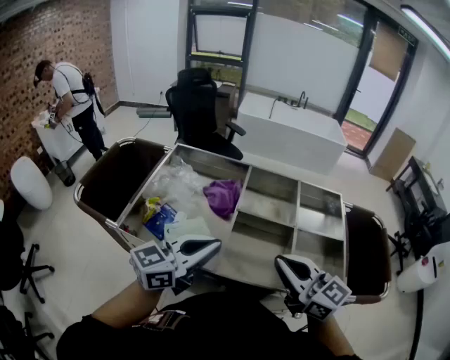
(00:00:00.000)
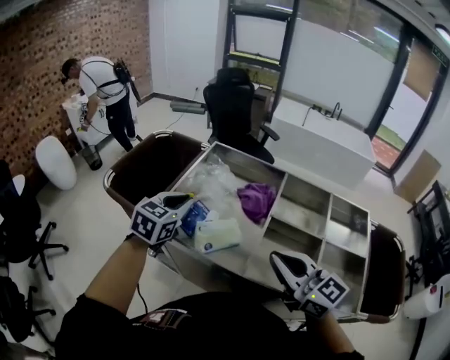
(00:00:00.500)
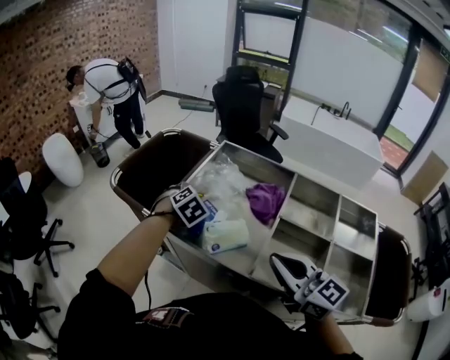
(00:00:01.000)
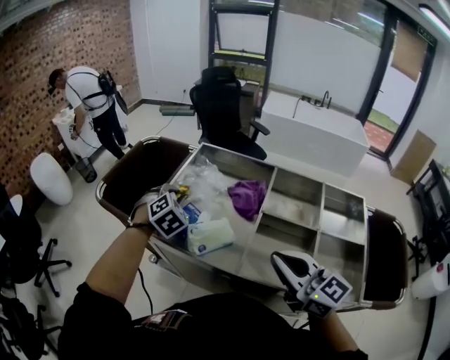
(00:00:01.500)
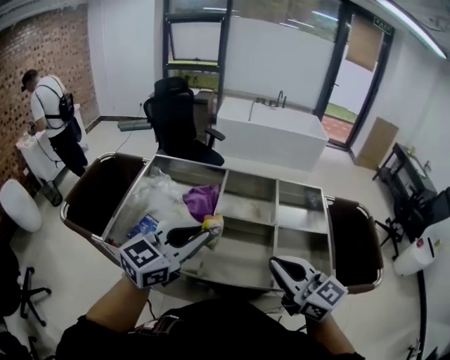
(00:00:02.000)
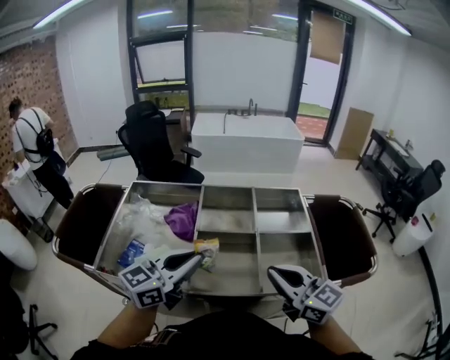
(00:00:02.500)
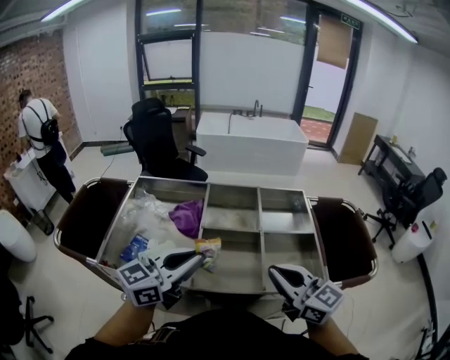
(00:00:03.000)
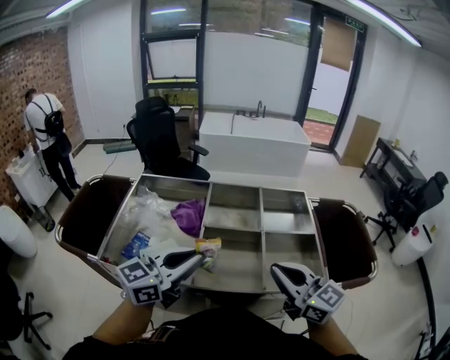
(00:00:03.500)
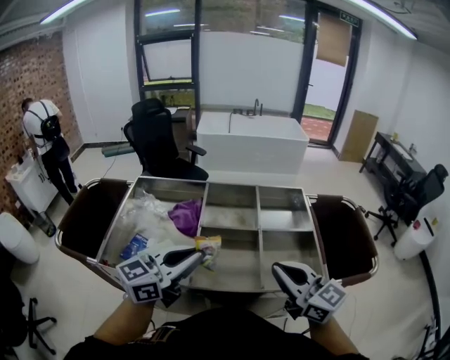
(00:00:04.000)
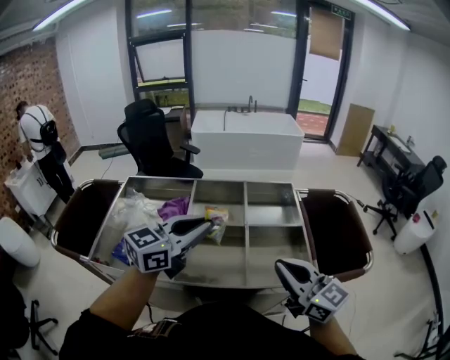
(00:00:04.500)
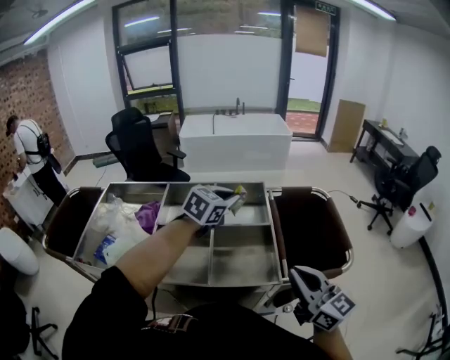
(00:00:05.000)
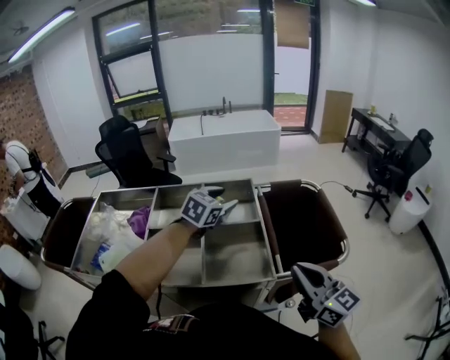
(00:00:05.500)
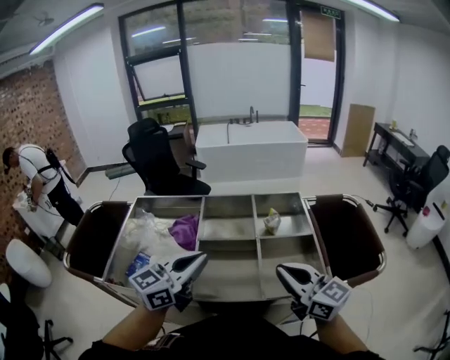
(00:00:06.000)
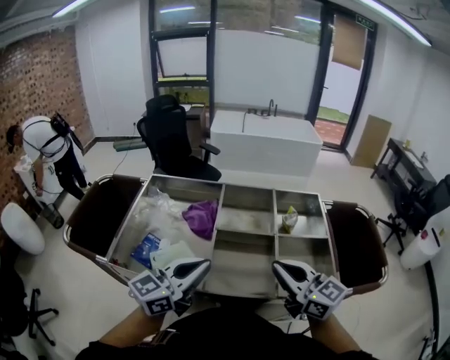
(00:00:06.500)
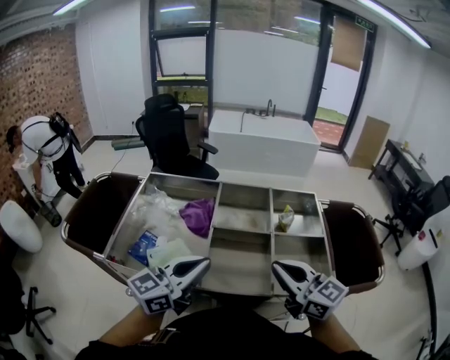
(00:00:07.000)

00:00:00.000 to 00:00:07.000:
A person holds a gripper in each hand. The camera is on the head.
00:00:00.000 to 00:00:02.000: The left gripper travels downward and back again, about 15 cm each way, and opens and closes again.
00:00:02.000 to 00:00:03.500: The grippers make only small movements.
00:00:03.500 to 00:00:05.000: The right gripper shifts some 20 cm to the right, while the left gripper shifts some 35 cm to the right and forward, and changes its angle by roughly 40 degrees.
00:00:05.000 to 00:00:07.000: The left gripper goes some 35 cm to the left and backward, tilts its fingers approximately 30 degrees upward, and opens, then closes again; the right gripper shifts approximately 20 cm to the left.

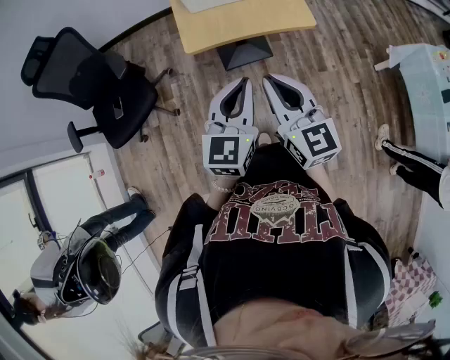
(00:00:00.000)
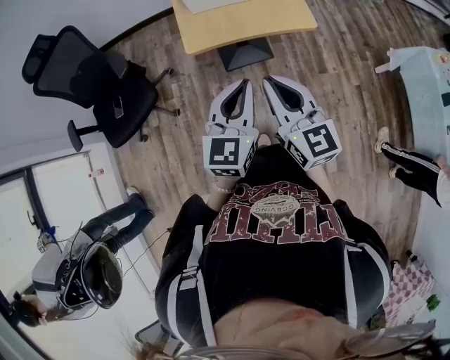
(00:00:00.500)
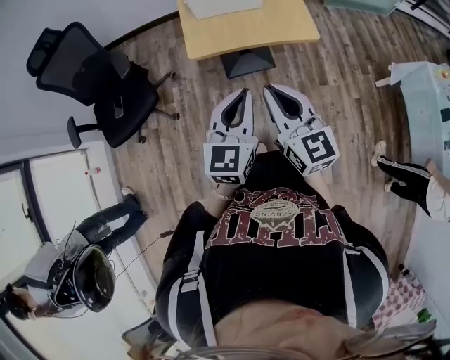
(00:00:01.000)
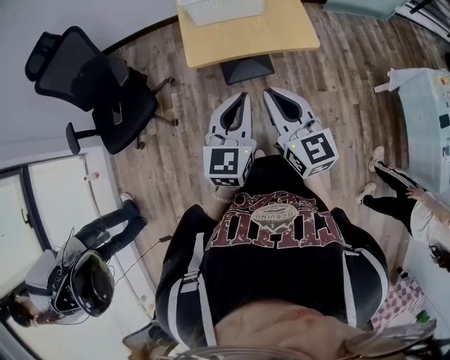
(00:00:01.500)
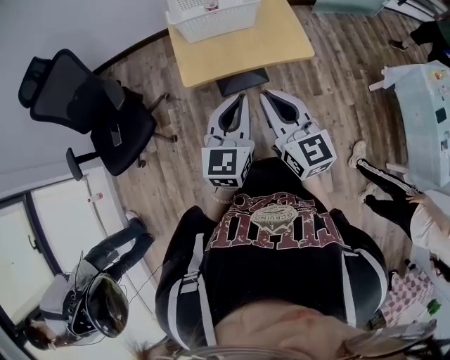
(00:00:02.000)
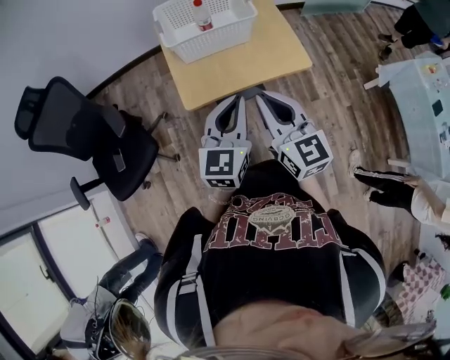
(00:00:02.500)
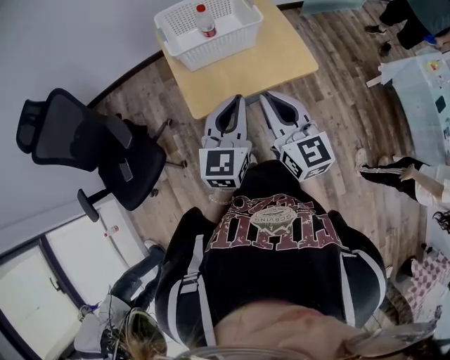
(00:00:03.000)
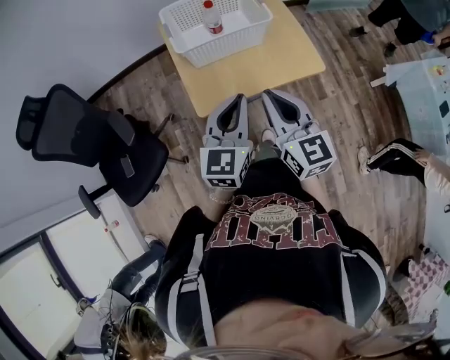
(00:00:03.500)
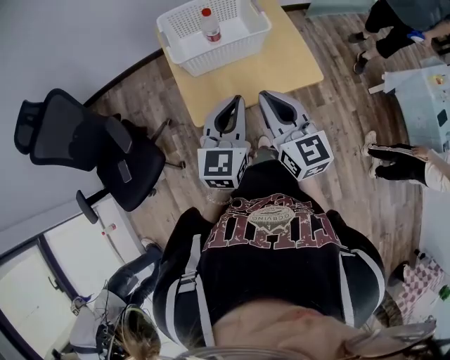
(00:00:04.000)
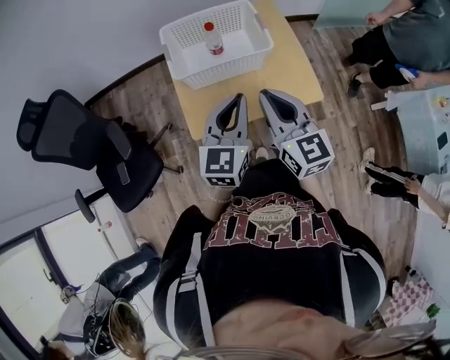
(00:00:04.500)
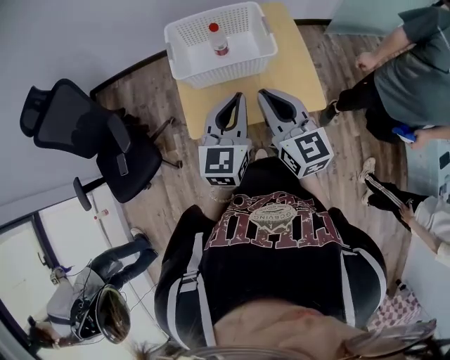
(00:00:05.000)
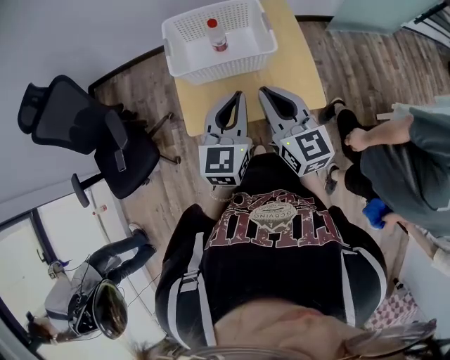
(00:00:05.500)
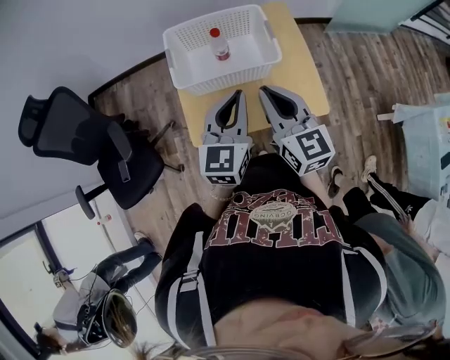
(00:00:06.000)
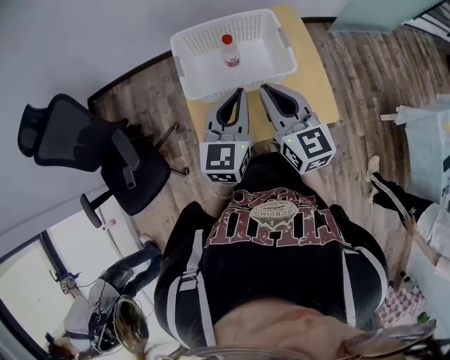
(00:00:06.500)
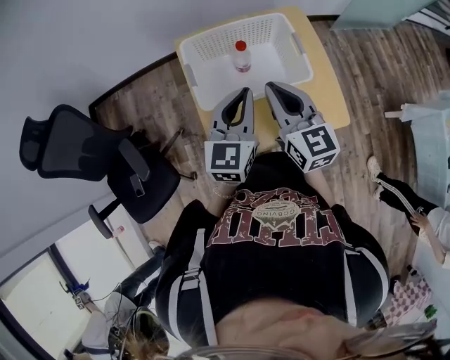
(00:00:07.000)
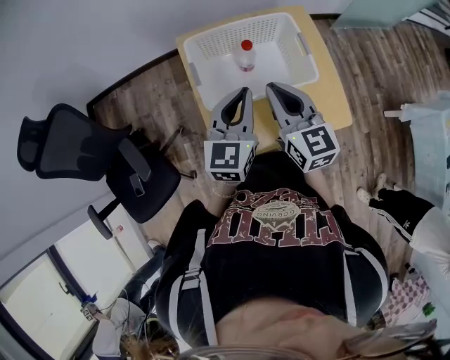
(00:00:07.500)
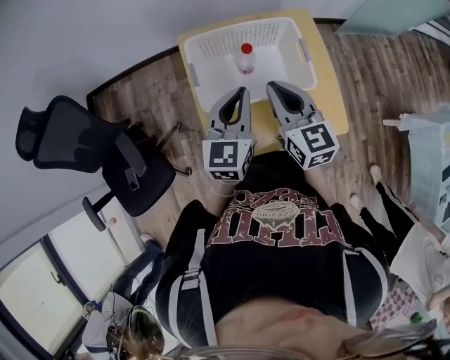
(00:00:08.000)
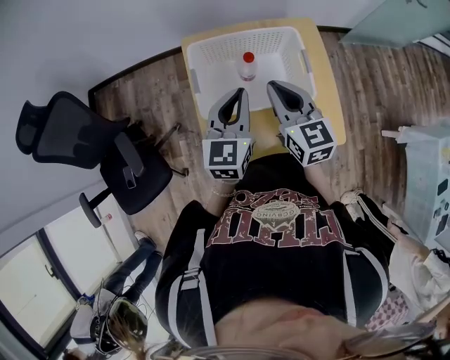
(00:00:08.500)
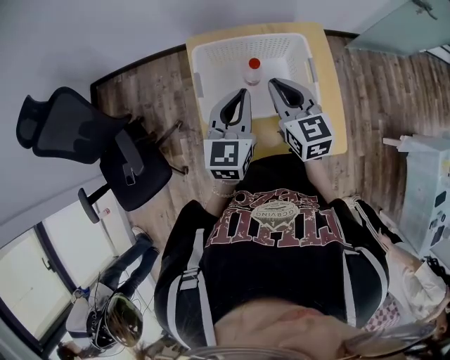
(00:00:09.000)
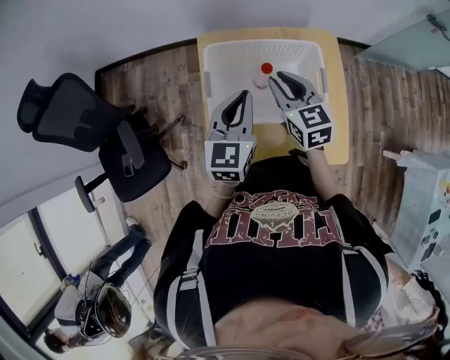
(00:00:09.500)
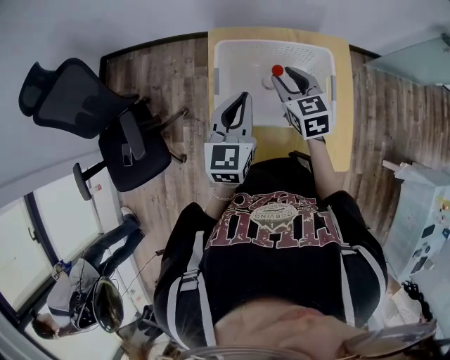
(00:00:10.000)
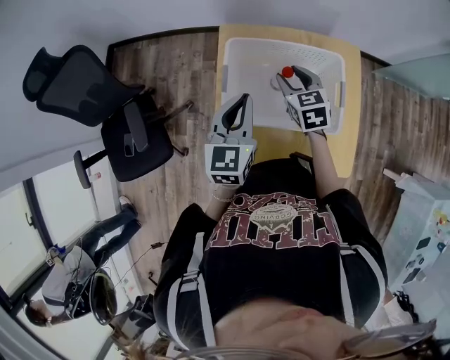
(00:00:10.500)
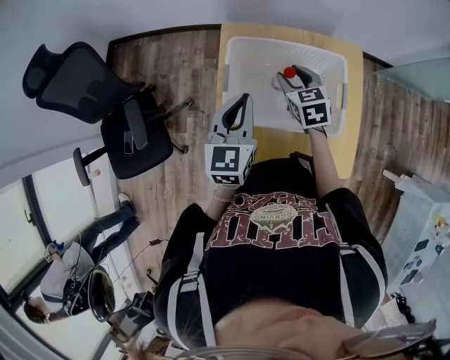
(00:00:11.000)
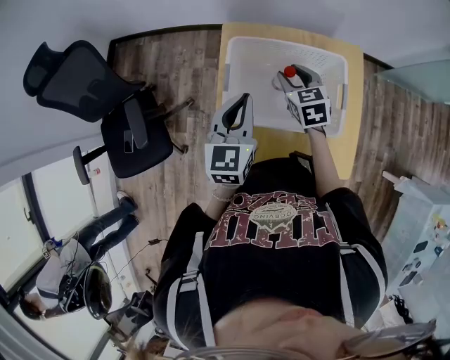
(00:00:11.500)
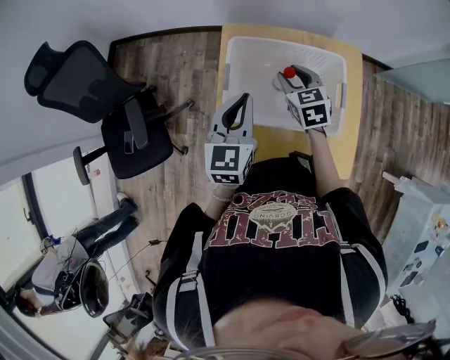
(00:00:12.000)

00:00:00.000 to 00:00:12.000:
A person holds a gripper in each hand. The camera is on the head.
00:00:00.000 to 00:00:02.000: Both grippers move forward, some 10 cm.
00:00:02.000 to 00:00:04.000: The two grippers go roughly 15 cm forward.
00:00:04.000 to 00:00:06.000: The grippers both shift forward by some 15 cm.
00:00:06.000 to 00:00:08.000: The grippers both shift forward and to the left by roughly 15 cm.
00:00:08.000 to 00:00:10.000: The left gripper shifts about 5 cm forward. Meanwhile the right gripper goes roughly 15 cm forward and downward, rotates approximately 20 degrees, and opens its fingers.
00:00:10.000 to 00:00:12.000: The grippers make only small movements.

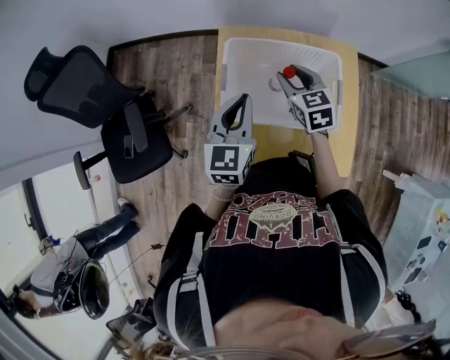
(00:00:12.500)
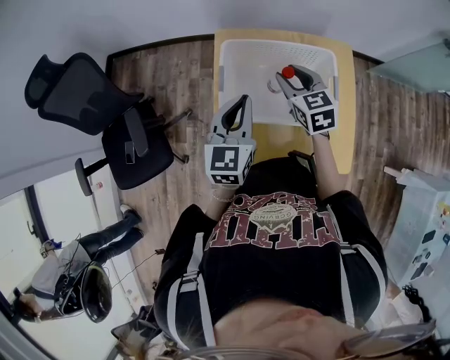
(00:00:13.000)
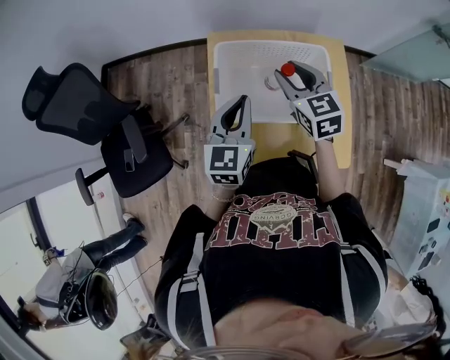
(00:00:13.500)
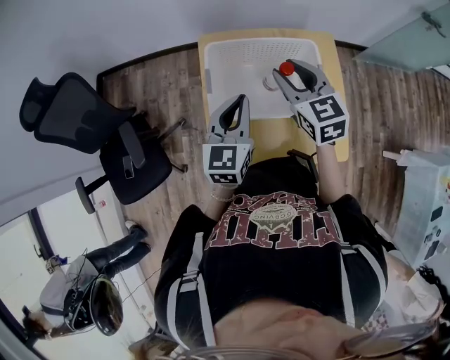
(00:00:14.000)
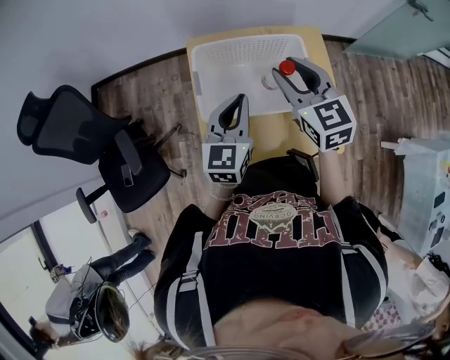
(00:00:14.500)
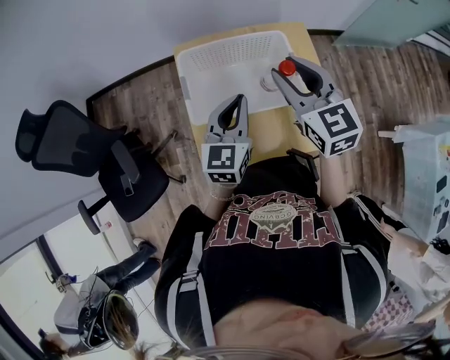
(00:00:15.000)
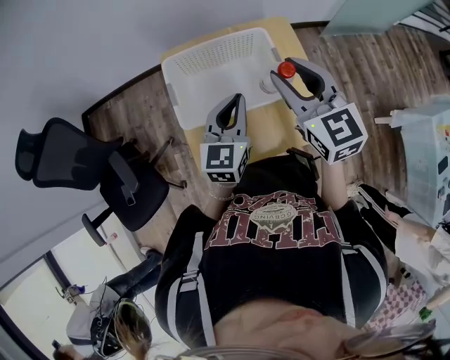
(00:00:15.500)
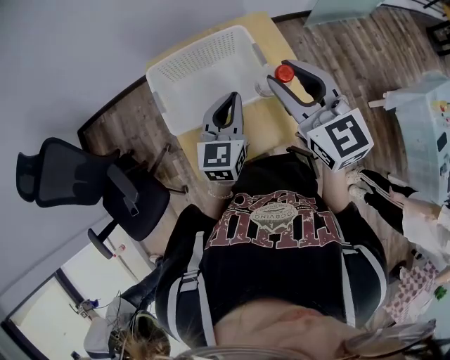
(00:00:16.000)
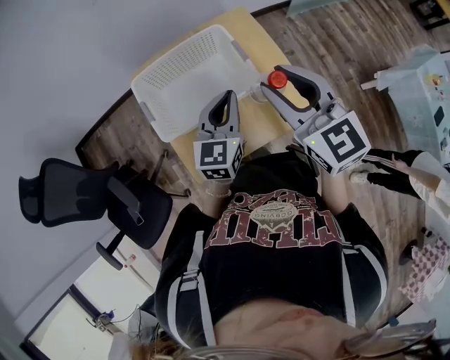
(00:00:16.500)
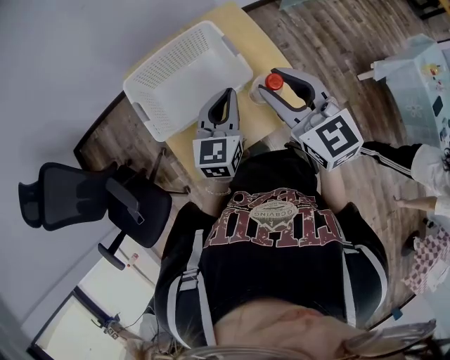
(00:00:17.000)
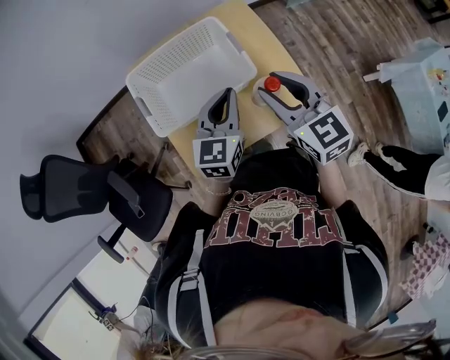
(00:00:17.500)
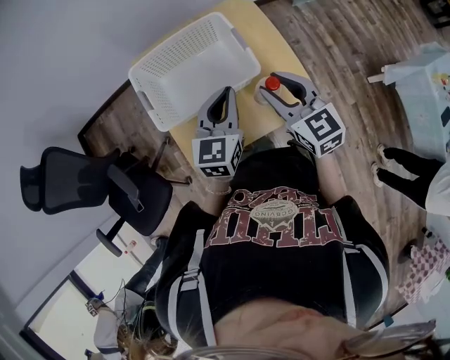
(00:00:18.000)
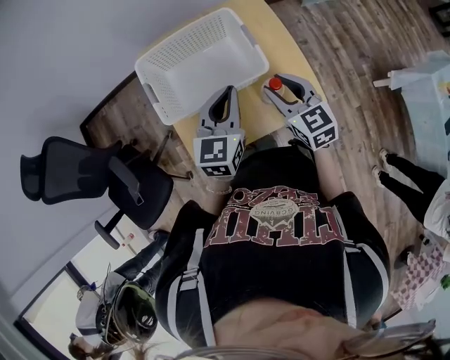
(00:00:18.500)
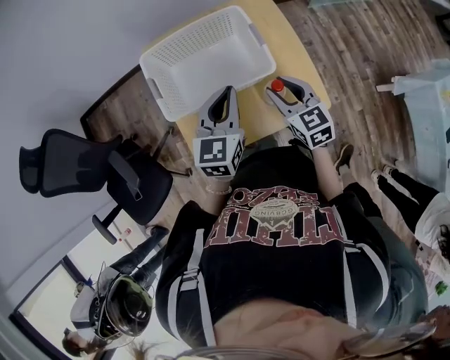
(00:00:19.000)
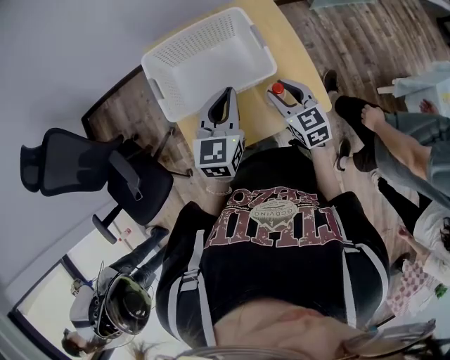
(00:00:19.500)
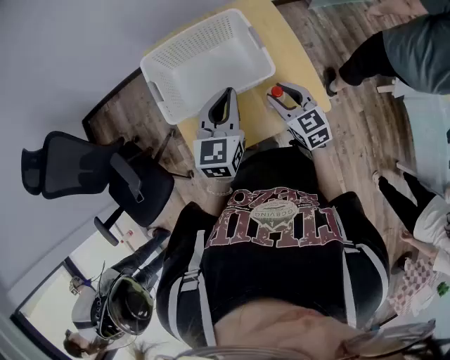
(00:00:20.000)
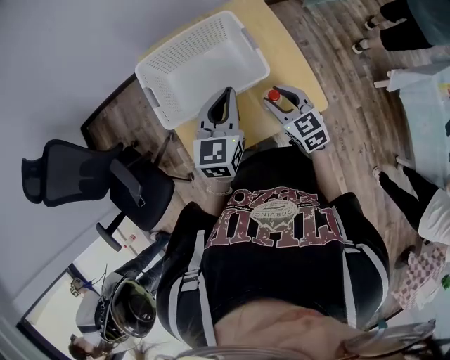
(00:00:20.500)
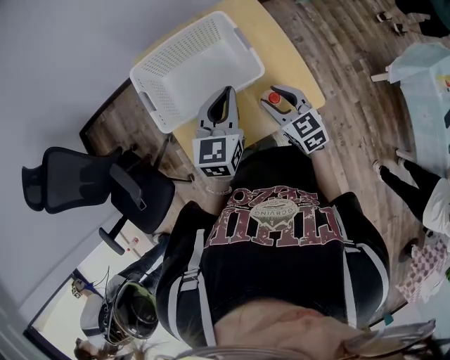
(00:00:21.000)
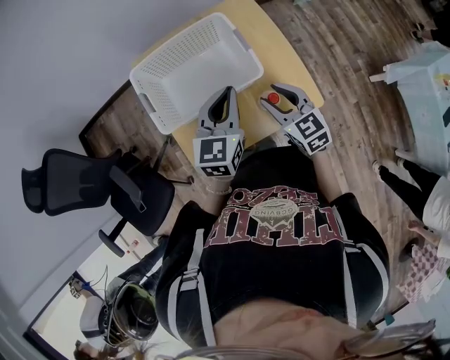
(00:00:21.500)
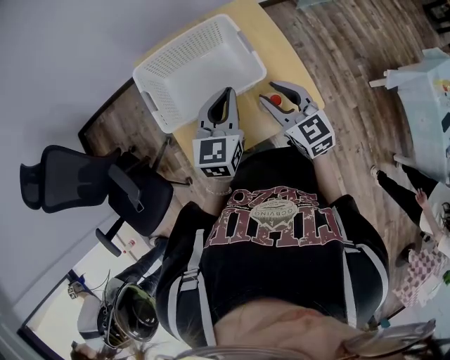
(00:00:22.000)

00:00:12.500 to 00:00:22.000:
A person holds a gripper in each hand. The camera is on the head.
00:00:12.500 to 00:00:14.500: The right gripper goes approximately 15 cm upward and backward, while the left gripper moves to the right, about 5 cm.
00:00:14.500 to 00:00:16.500: The right gripper shifts roughly 15 cm backward, to the right and upward, while the left gripper shifts roughly 10 cm to the right.
00:00:16.500 to 00:00:18.000: The right gripper is displaced downward by some 10 cm.
00:00:18.000 to 00:00:20.000: The right gripper is displaced downward by roughly 10 cm.
00:00:20.000 to 00:00:22.000: The right gripper shifts roughly 5 cm upward.
